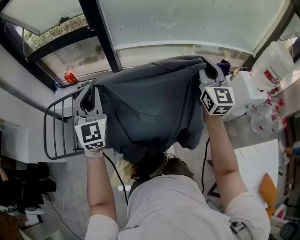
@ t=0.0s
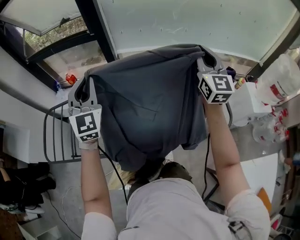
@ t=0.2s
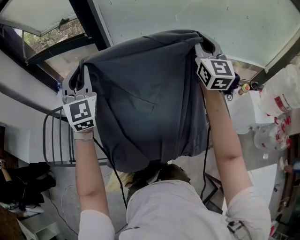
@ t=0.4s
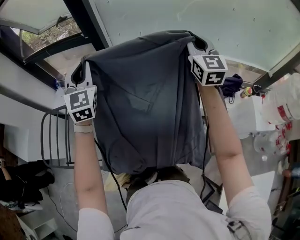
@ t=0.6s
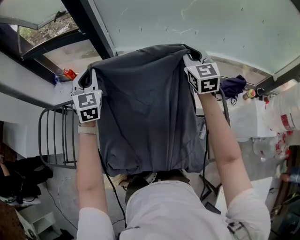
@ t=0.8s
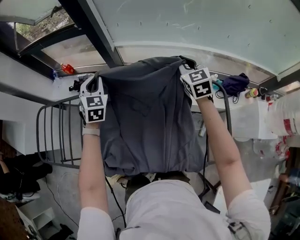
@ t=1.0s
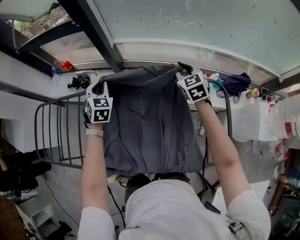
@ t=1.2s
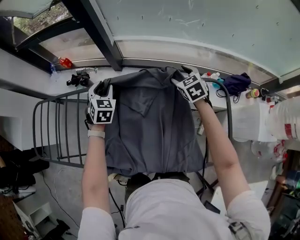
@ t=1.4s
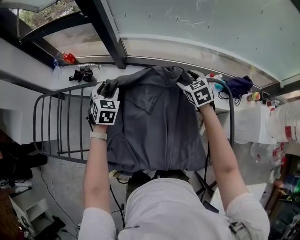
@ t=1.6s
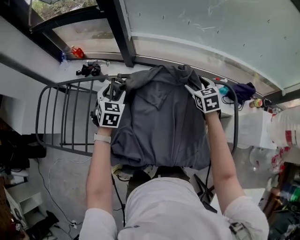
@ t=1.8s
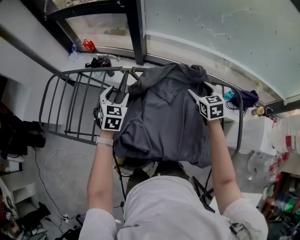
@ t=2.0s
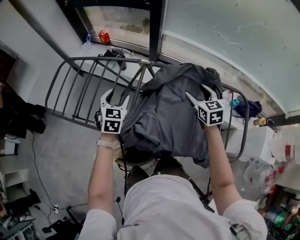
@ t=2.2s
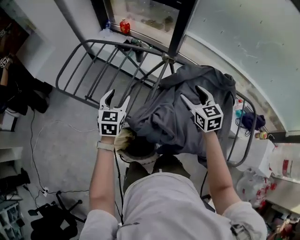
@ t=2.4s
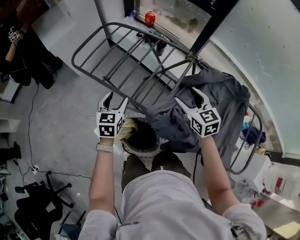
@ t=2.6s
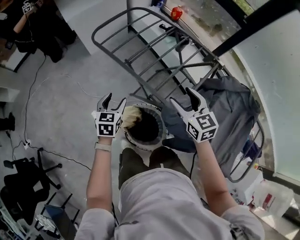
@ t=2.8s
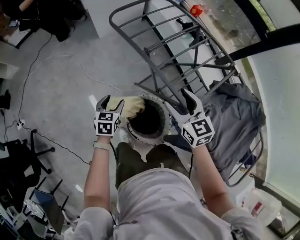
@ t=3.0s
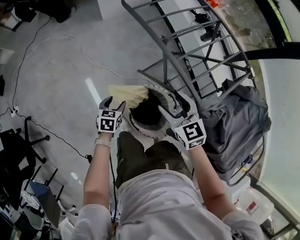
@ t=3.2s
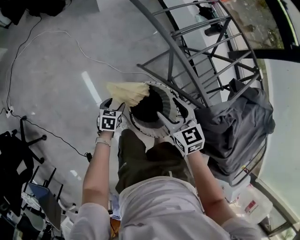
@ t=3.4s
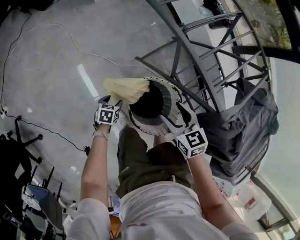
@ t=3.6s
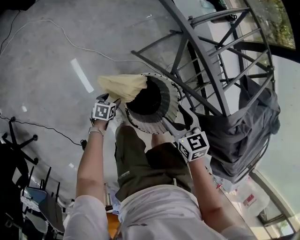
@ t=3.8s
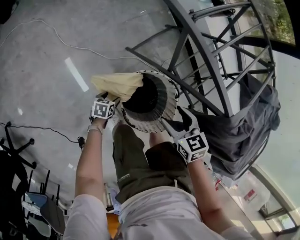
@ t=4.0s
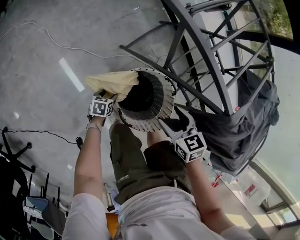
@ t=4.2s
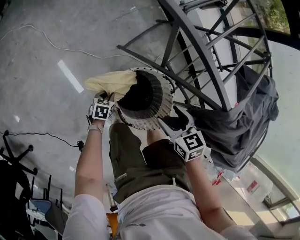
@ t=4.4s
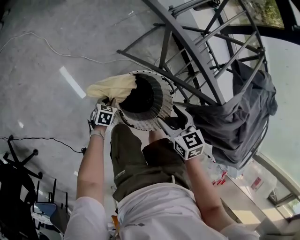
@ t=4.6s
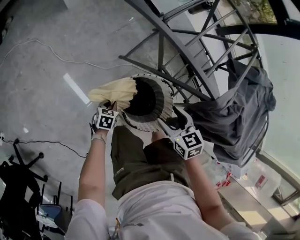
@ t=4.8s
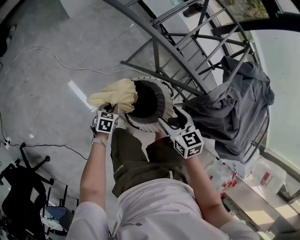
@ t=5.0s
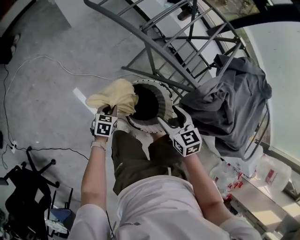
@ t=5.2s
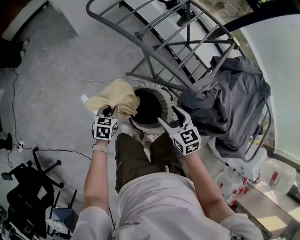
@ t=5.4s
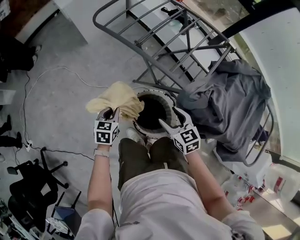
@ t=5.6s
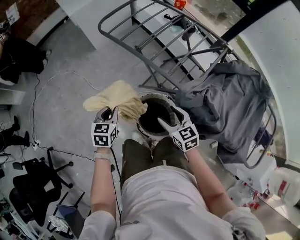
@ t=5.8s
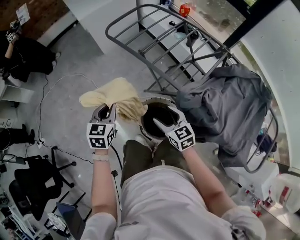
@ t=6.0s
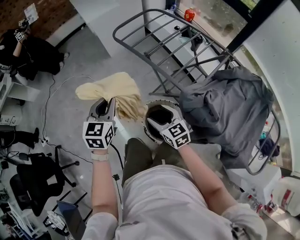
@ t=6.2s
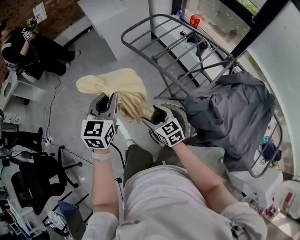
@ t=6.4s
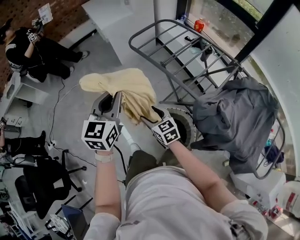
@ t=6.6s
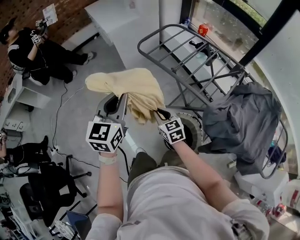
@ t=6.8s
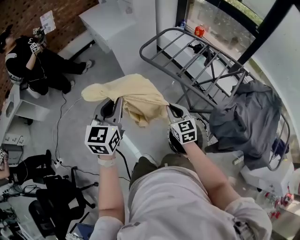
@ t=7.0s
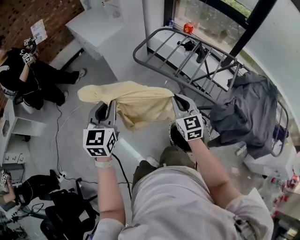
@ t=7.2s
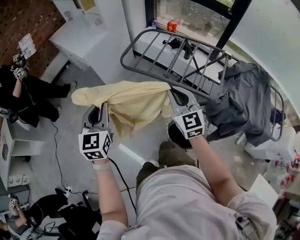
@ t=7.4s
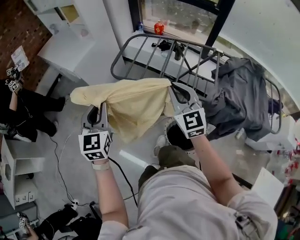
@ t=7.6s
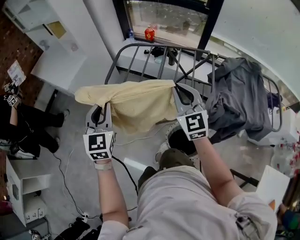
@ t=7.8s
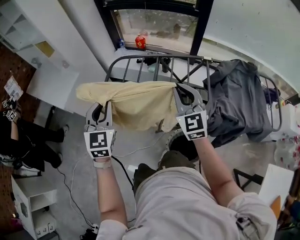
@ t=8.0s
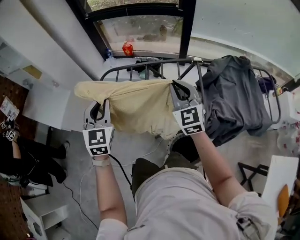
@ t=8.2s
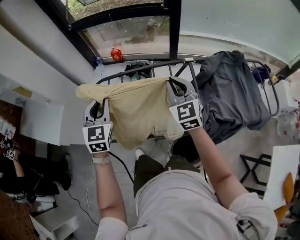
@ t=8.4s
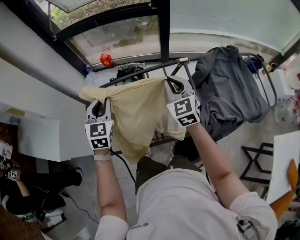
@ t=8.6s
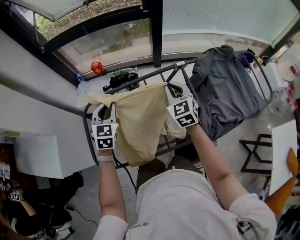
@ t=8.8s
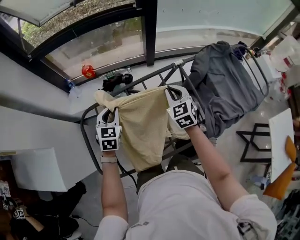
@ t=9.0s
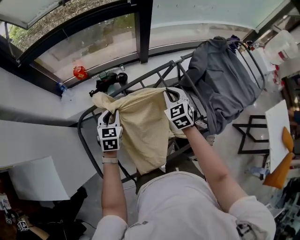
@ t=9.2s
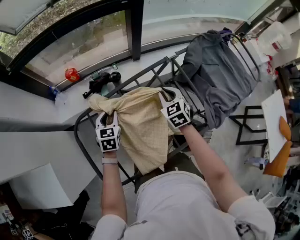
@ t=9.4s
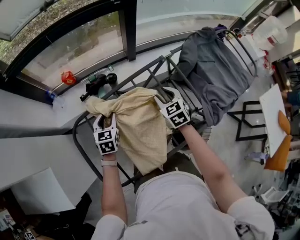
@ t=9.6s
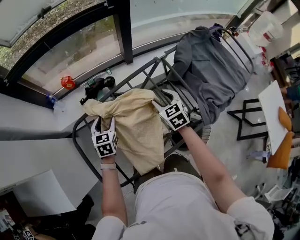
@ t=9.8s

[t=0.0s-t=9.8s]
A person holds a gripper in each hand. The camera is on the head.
t=0.0s to t=1.4s: The left gripper goes approximately 40 cm forward, downward and to the right, points its fingers some 40 degrees further downward, and opens up. The right gripper goes approximately 40 cm forward and downward, tilts its fingers approximately 50 degrees downward, and opens.
t=1.4s to t=2.8s: The pair of grippers is taken approximately 60 cm. The right gripper swivels about 50 degrees. The left gripper twists roughly 50 degrees counterclockwise, seen from behind, and opens.
t=2.8s to t=4.2s: The left gripper moves downward, roughly 50 cm, and swivels some 40 degrees, while the right gripper heads downward and to the left, covering about 35 cm, and rotates some 30 degrees.
t=4.2s to t=5.6s: The right gripper is displaced upward by approximately 15 cm. The left gripper moves upward, about 40 cm, swivels roughly 30 degrees, and closes up.
t=5.6s to t=7.0s: The left gripper travels upward and to the left by some 40 cm, and angles its fingers upward, by about 30 degrees, while the right gripper travels to the left, forward and upward by roughly 25 cm, and closes.
t=7.0s to t=8.4s: The left gripper ends up approximately 50 cm from where it was, and changes its angle by approximately 40 degrees. Meanwhile the right gripper ends up roughly 40 cm from where it was, and turns by some 50 degrees.
t=8.4s to t=9.8s: The grippers both shift downward by roughly 20 cm. The right gripper rotates approximately 40 degrees, and opens up. Meanwhile the left gripper changes its angle by roughly 30 degrees, and opens.

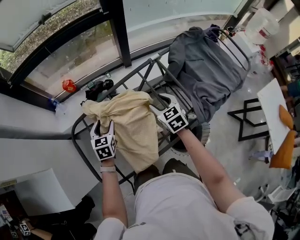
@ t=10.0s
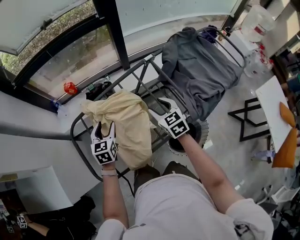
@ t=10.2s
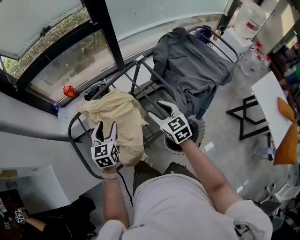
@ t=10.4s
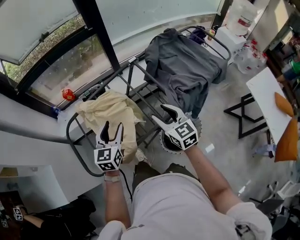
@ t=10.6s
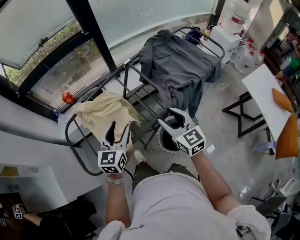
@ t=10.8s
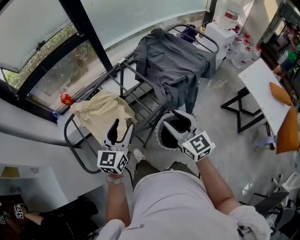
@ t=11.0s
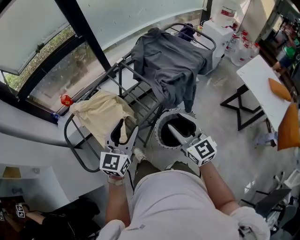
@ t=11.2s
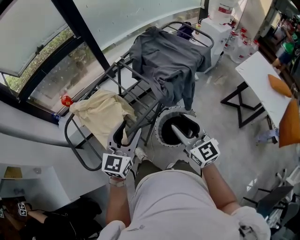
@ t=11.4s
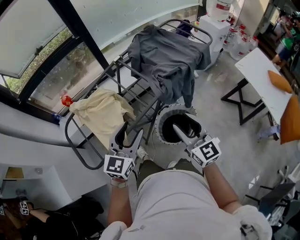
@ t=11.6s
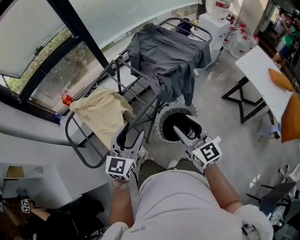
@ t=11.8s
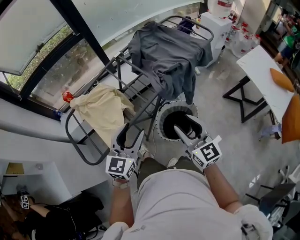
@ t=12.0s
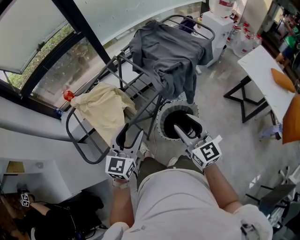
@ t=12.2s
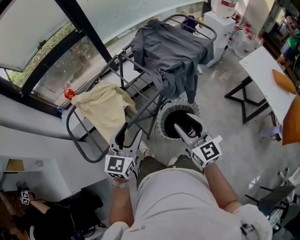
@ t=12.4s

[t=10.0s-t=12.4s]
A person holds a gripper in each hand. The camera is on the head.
t=10.0s to t=11.2s: The left gripper goes about 40 cm to the right, backward and upward, and angles its fingers upward, by roughly 30 degrees, while the right gripper heads backward, to the right and upward, covering roughly 40 cm, and angles its fingers upward, by approximately 30 degrees.
t=11.2s to t=12.4s: Both grippers travel together backward, roughly 5 cm.
